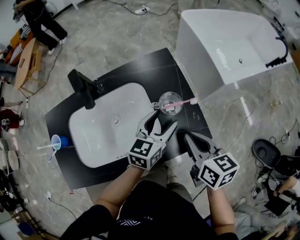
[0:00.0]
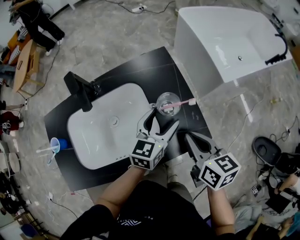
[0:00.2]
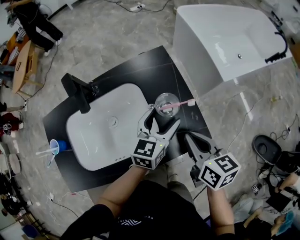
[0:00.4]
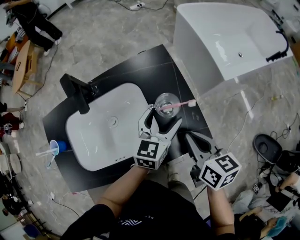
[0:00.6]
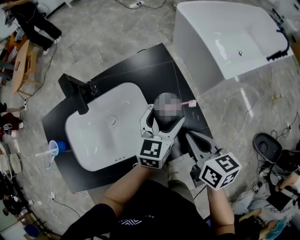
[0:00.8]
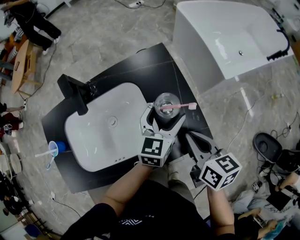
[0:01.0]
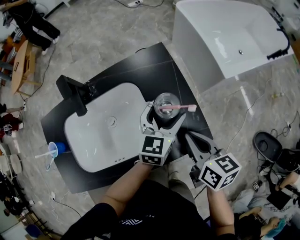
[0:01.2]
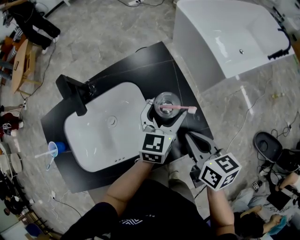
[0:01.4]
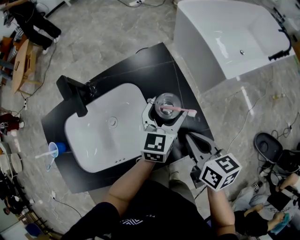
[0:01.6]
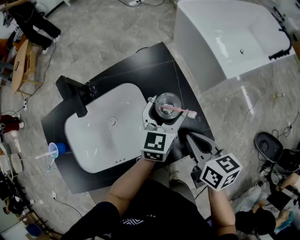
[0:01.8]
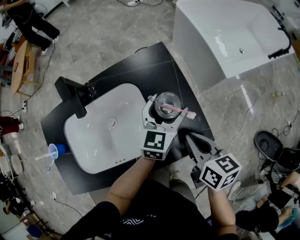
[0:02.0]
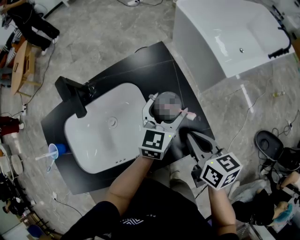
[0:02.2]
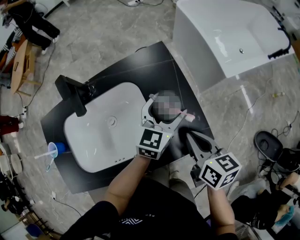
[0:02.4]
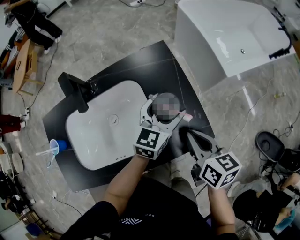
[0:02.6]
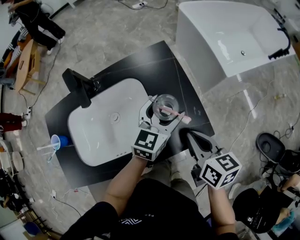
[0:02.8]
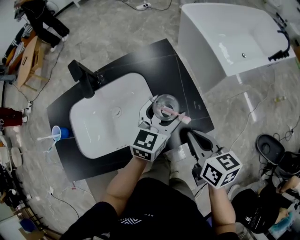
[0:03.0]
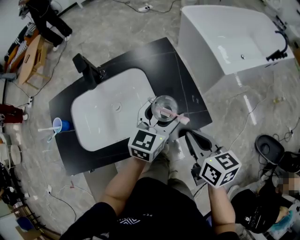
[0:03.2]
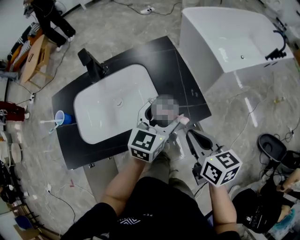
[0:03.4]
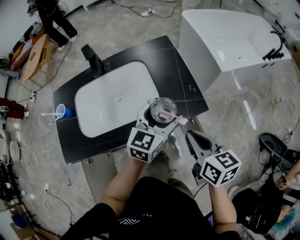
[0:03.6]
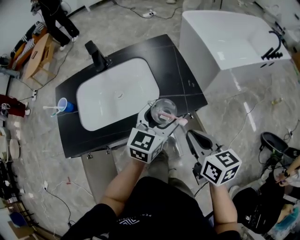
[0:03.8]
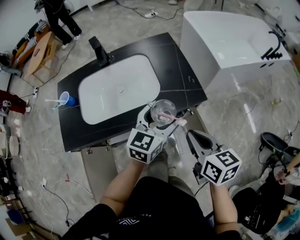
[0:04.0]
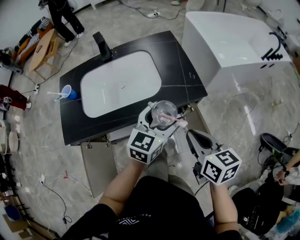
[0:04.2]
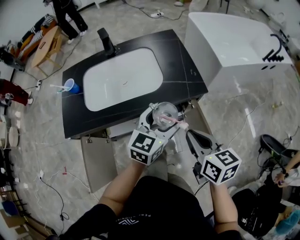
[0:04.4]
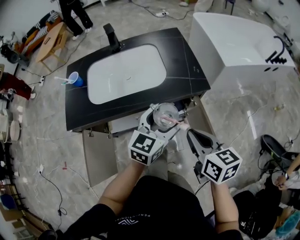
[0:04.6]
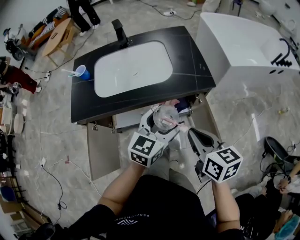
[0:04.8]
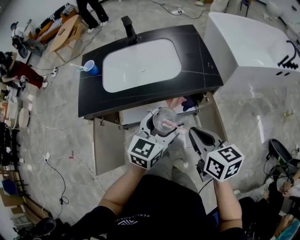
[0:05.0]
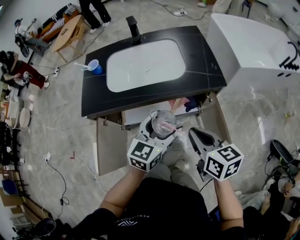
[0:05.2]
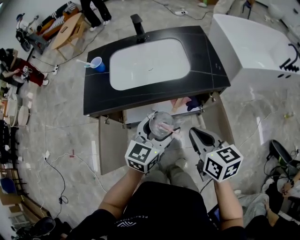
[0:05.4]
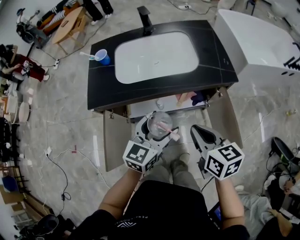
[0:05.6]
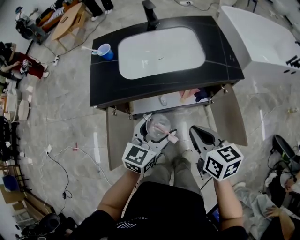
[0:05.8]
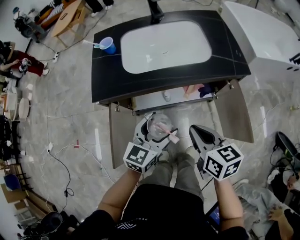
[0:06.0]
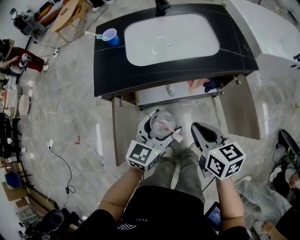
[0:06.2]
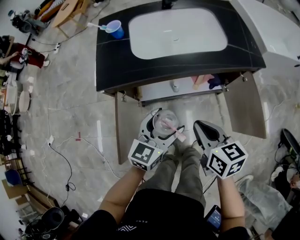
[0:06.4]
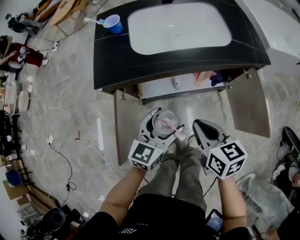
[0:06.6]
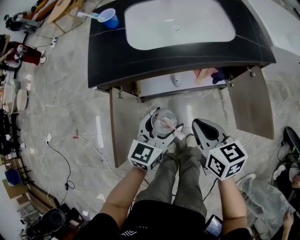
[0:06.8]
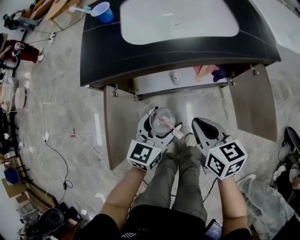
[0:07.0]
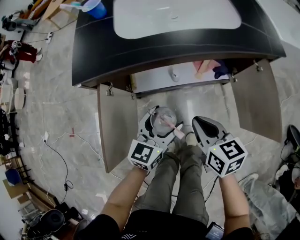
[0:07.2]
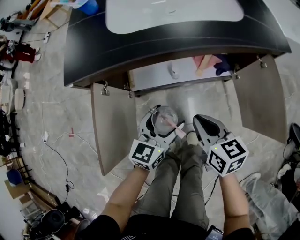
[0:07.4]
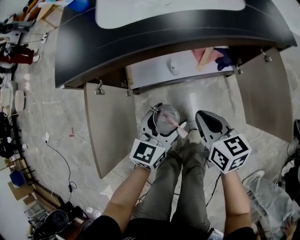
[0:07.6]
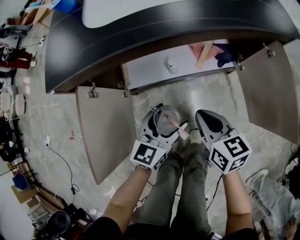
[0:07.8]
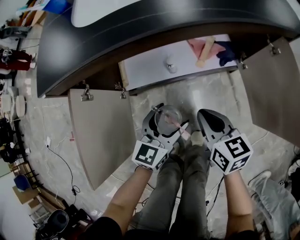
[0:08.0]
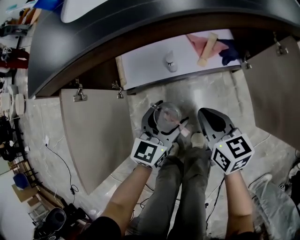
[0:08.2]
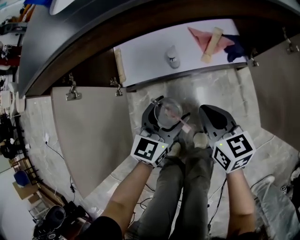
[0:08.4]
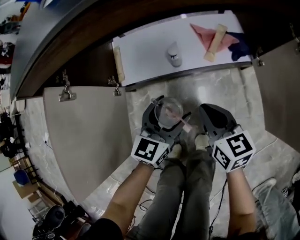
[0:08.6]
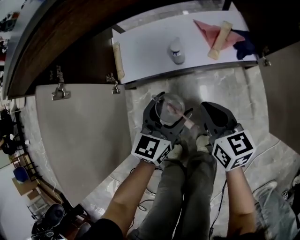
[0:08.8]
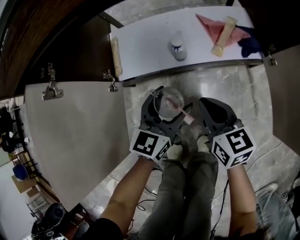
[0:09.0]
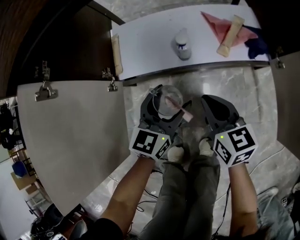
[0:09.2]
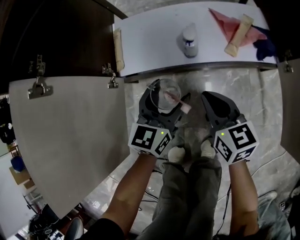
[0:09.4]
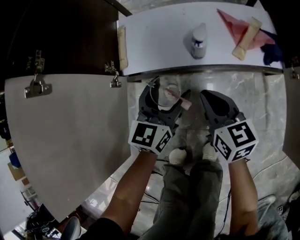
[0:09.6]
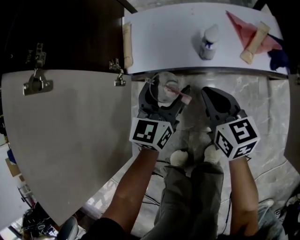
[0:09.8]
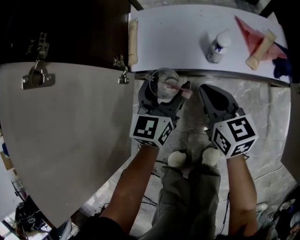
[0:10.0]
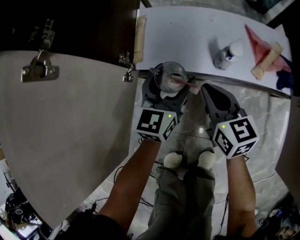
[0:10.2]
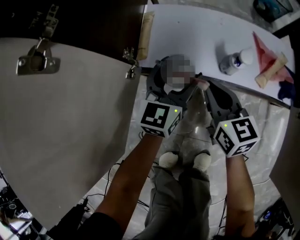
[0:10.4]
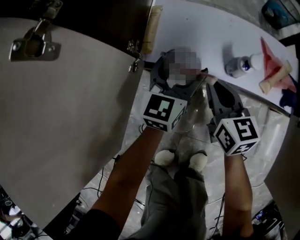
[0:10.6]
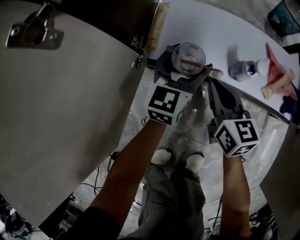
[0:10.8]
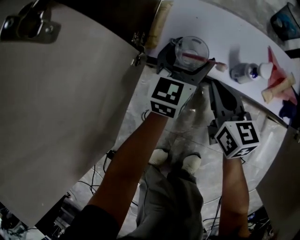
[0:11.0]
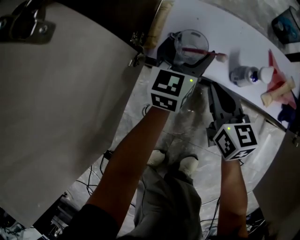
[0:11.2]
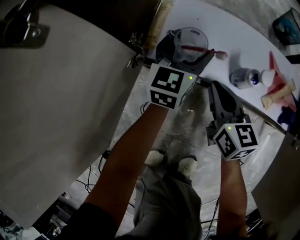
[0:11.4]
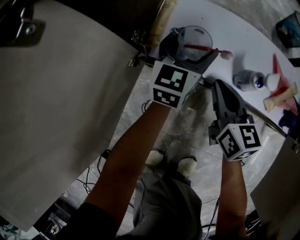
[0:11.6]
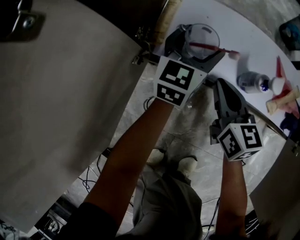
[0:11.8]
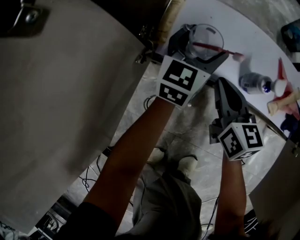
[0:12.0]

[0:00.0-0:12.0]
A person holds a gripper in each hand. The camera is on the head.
0:00.0 to 0:01.6: The left gripper shifts about 5 cm forward.
0:01.6 to 0:03.0: The right gripper moves approximately 5 cm; the left gripper moves backward, some 5 cm.
0:03.0 to 0:04.4: The two grippers go some 20 cm backward.
0:04.4 to 0:06.0: The right gripper moves to the left, about 20 cm, while the left gripper travels to the left and backward by some 25 cm.
0:06.0 to 0:07.6: The grippers both shift downward by about 25 cm.
0:07.6 to 0:09.0: The grippers both shift downward by roughly 20 cm.
0:09.0 to 0:10.4: The two grippers go approximately 20 cm forward, to the left and downward.
0:10.4 to 0:12.0: The right gripper moves approximately 5 cm, while the left gripper moves forward, some 10 cm.

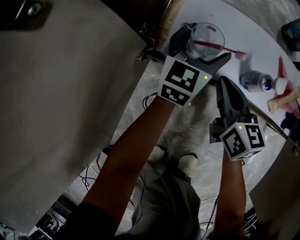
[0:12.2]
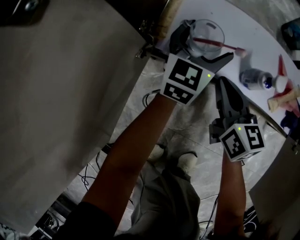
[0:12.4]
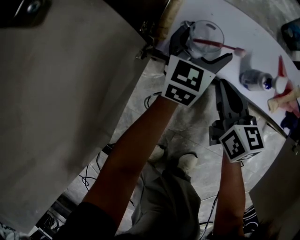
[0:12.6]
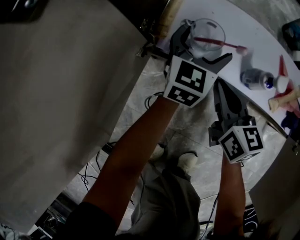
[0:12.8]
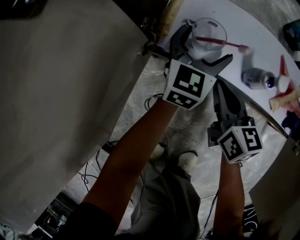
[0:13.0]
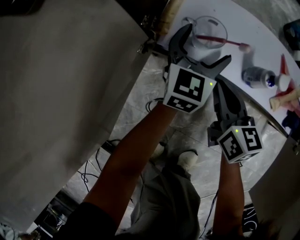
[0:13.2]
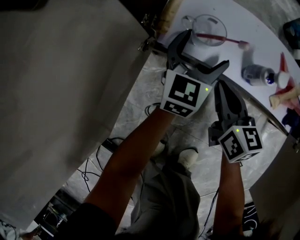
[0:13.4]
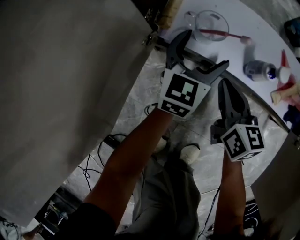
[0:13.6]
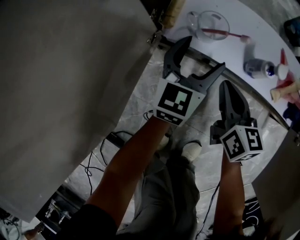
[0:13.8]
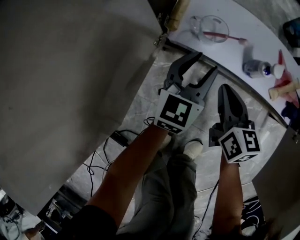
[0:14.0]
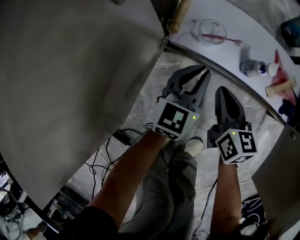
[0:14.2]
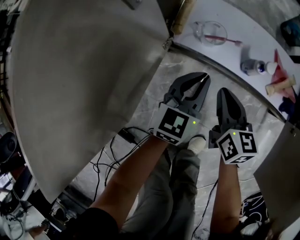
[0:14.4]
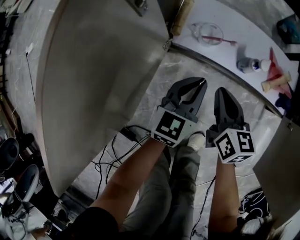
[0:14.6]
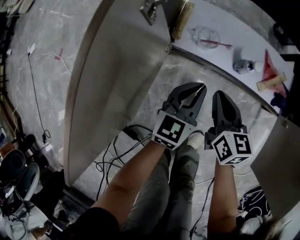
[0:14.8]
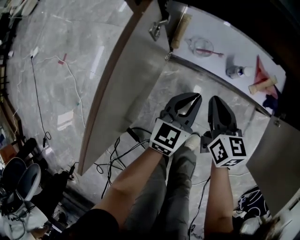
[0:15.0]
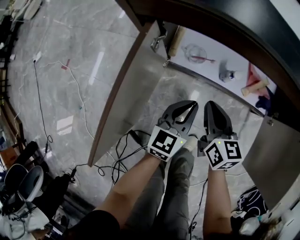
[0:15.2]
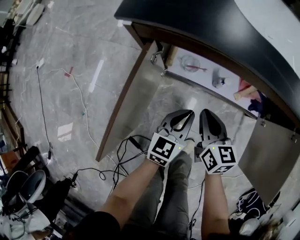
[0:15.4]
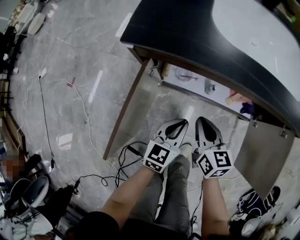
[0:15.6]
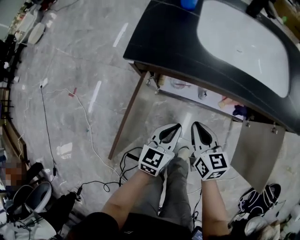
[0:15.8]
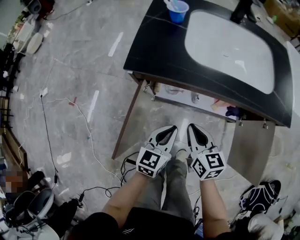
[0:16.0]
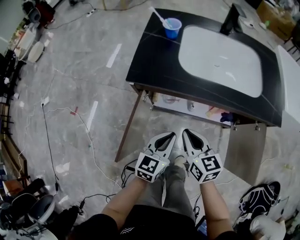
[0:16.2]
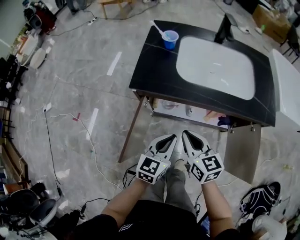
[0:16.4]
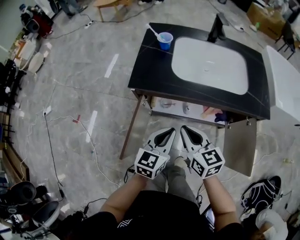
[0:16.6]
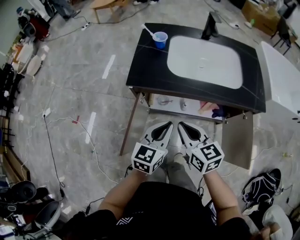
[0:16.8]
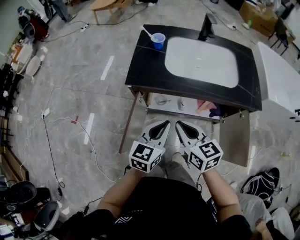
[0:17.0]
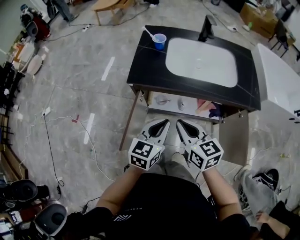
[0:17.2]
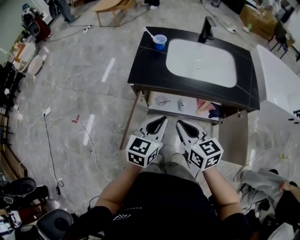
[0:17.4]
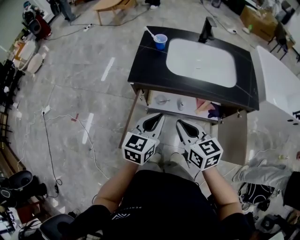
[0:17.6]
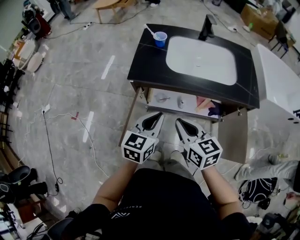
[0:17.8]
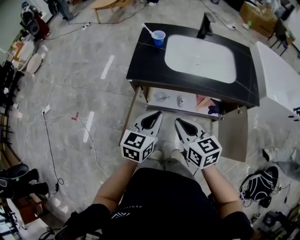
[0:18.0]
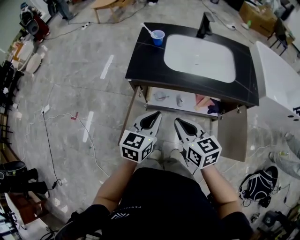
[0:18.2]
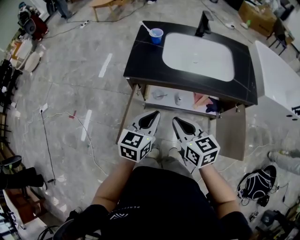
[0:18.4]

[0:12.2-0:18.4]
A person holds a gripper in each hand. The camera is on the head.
0:12.2 to 0:13.8: The left gripper is displaced backward by roughly 10 cm, while the right gripper is displaced backward by about 5 cm.
0:13.8 to 0:15.4: The right gripper is displaced upward by roughly 25 cm. The left gripper shifts roughly 25 cm upward and backward, and closes.
0:15.4 to 0:16.8: Both grippers move upward, roughly 30 cm.
0:16.8 to 0:18.4: There are only small adjustments of the grippers.

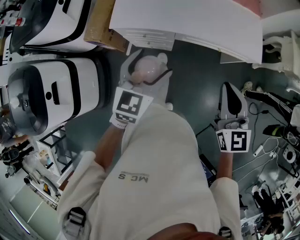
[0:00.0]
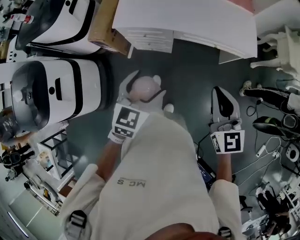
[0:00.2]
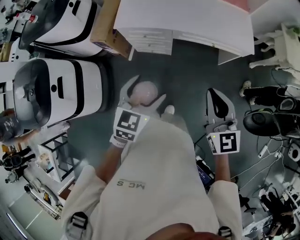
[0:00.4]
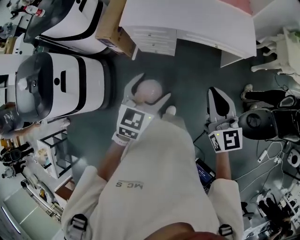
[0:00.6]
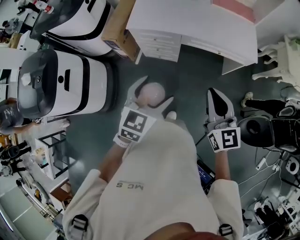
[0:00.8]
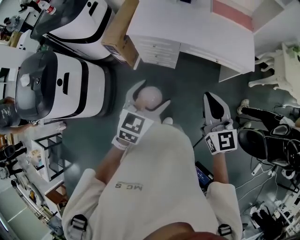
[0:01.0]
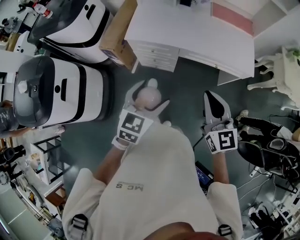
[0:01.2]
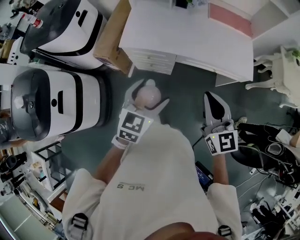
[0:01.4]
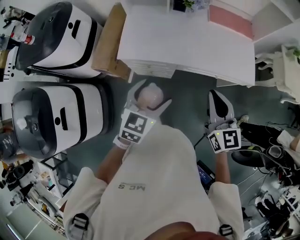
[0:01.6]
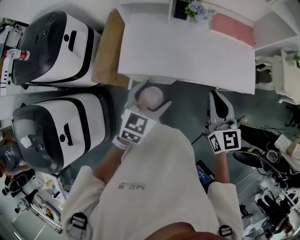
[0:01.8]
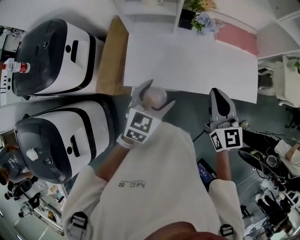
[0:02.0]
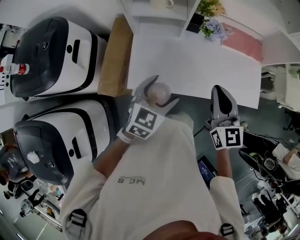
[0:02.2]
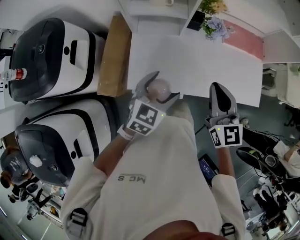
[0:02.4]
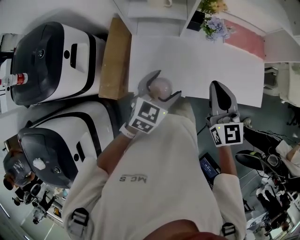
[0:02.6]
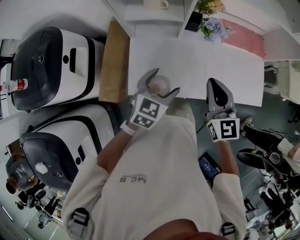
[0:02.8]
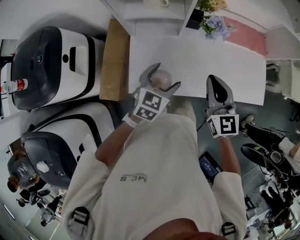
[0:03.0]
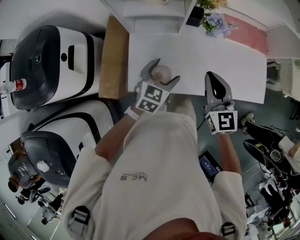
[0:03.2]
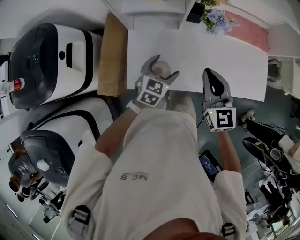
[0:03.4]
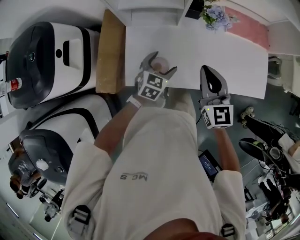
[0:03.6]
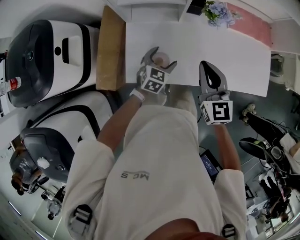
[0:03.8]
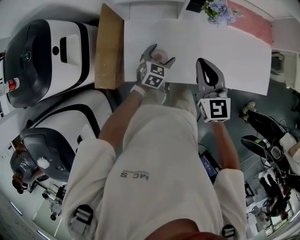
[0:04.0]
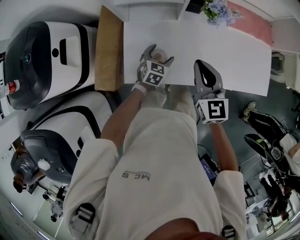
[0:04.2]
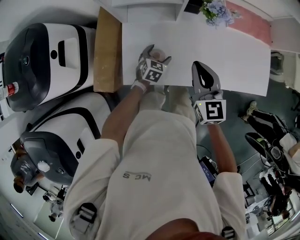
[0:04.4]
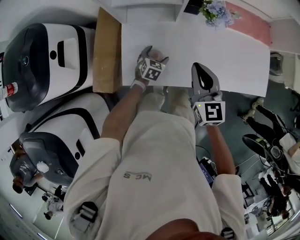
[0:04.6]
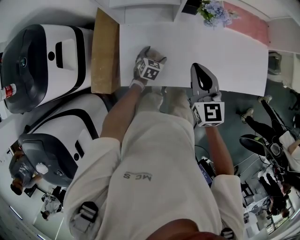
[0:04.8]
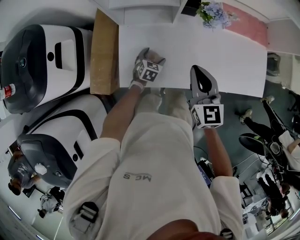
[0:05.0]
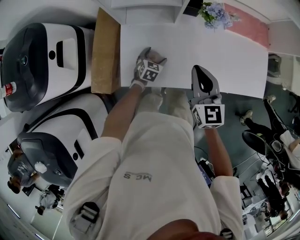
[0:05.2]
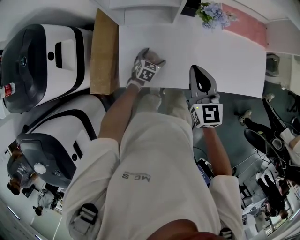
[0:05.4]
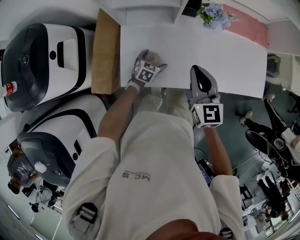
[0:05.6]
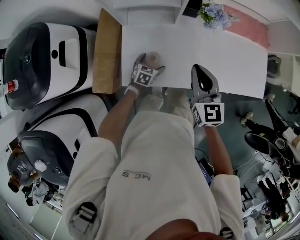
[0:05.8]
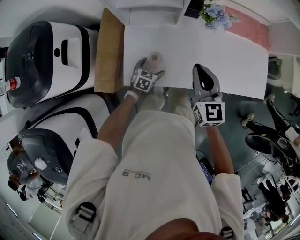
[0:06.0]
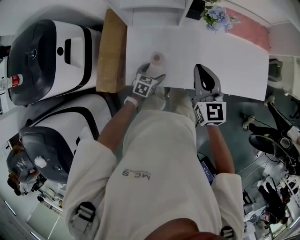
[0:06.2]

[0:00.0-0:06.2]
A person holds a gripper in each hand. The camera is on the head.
0:00.0 to 0:01.6: The right gripper goes approximately 10 cm to the left, and reaches about 20 cm backward, then returns, while the left gripper travels backward and back again, some 25 cm each way.
0:01.6 to 0:03.2: The left gripper shifts about 35 cm forward. The right gripper shifts roughly 35 cm forward and to the left.
0:03.2 to 0:04.6: The right gripper goes some 5 cm downward; the left gripper travels downward by some 20 cm.
0:04.6 to 0:06.2: The left gripper goes some 10 cm backward.
